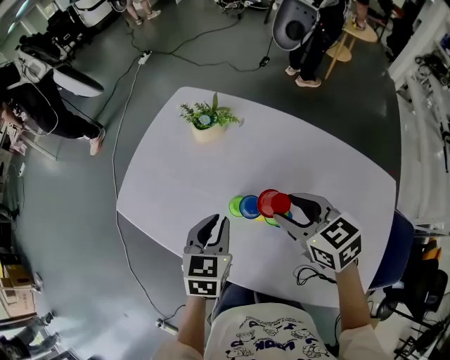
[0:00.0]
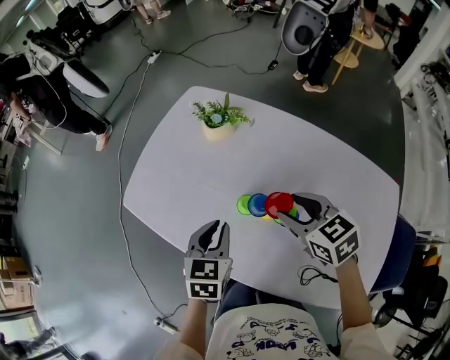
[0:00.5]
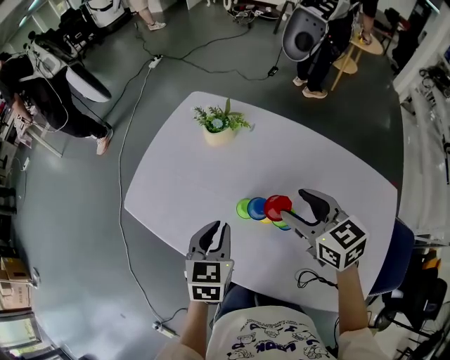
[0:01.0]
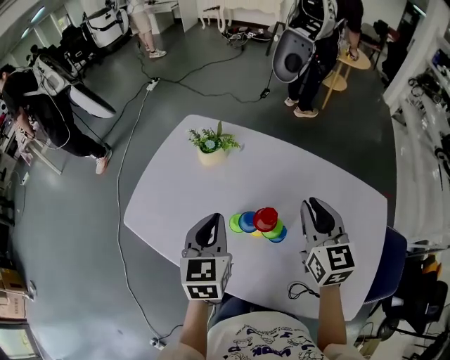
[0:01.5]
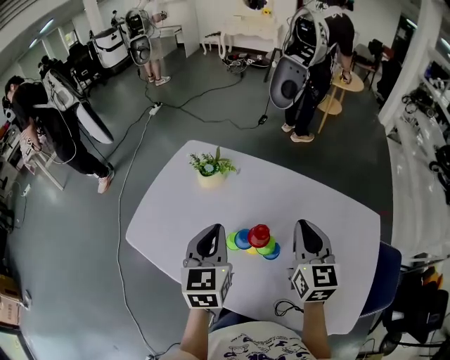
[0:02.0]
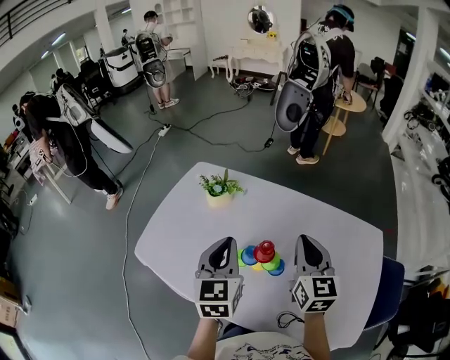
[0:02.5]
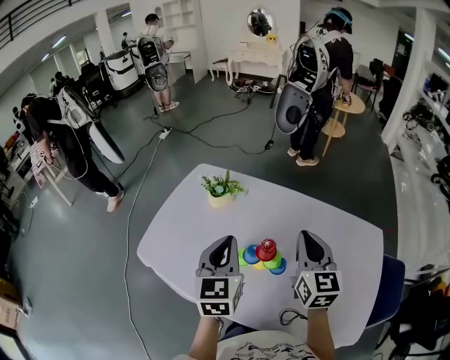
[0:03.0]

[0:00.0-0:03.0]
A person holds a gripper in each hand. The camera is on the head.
0:00.0 to 0:01.5: The right gripper moves upward and to the right, roughly 10 cm, turns by about 40 degrees, and closes. The left gripper moves upward, approximately 10 cm.
0:01.5 to 0:03.0: The right gripper shifts approximately 5 cm backward and upward. Meanwhile the left gripper is displaced upward by about 10 cm.

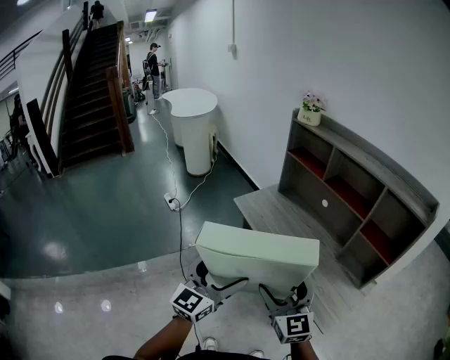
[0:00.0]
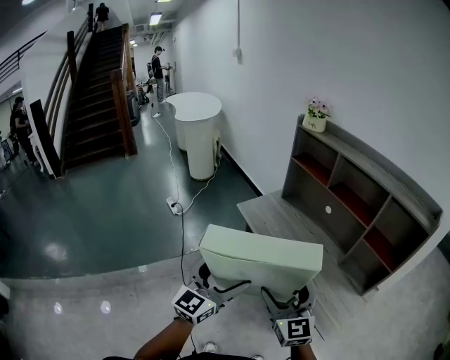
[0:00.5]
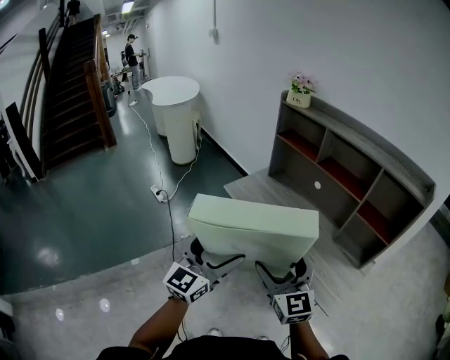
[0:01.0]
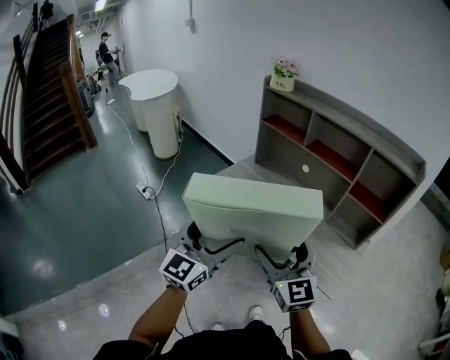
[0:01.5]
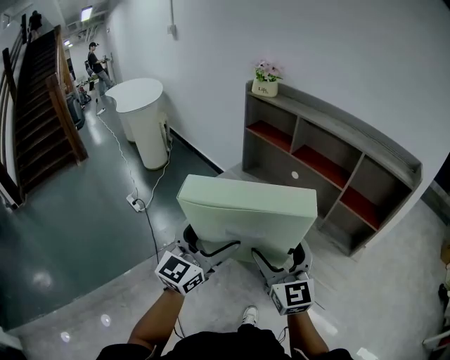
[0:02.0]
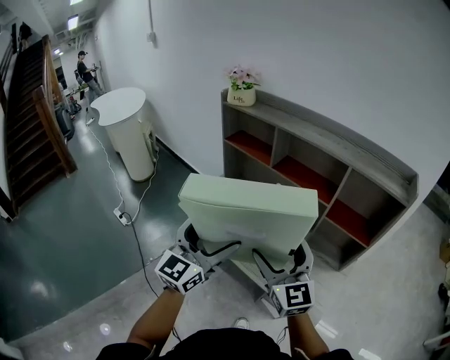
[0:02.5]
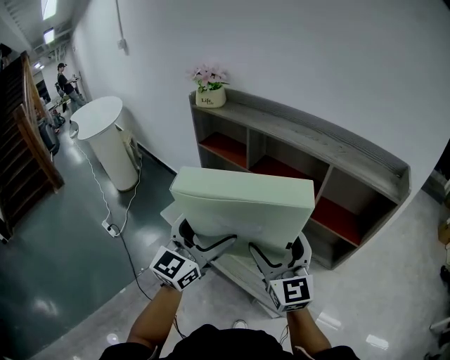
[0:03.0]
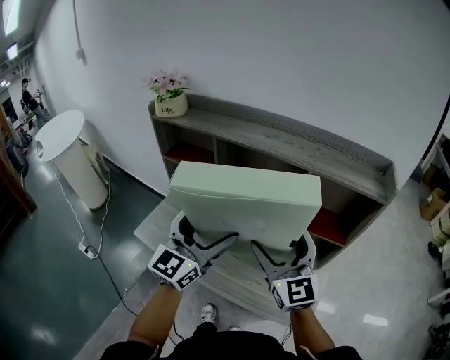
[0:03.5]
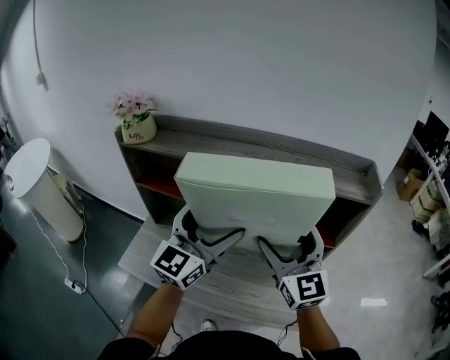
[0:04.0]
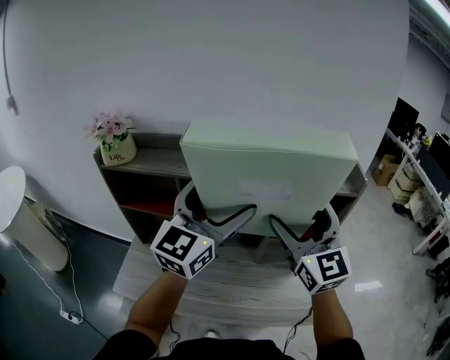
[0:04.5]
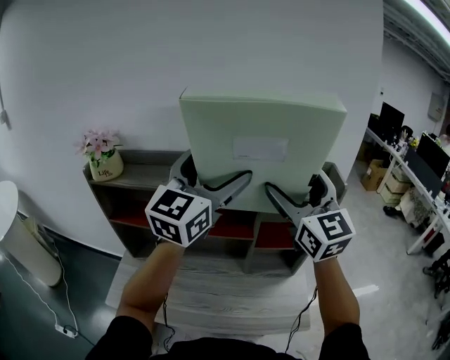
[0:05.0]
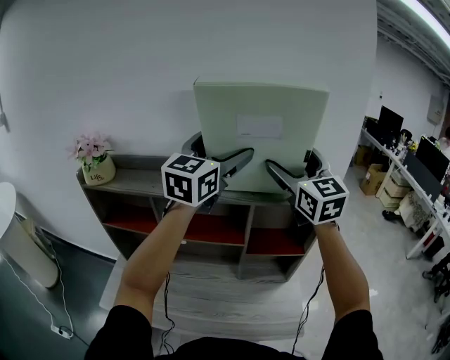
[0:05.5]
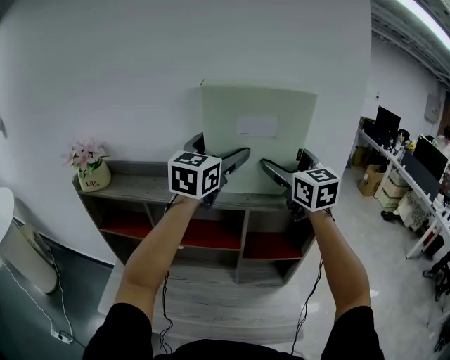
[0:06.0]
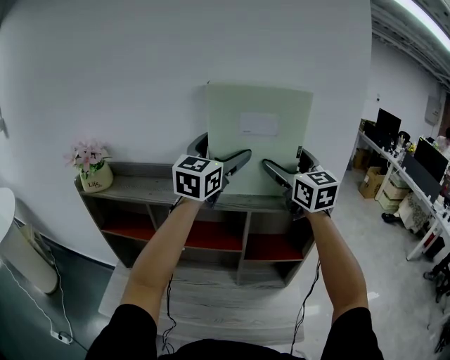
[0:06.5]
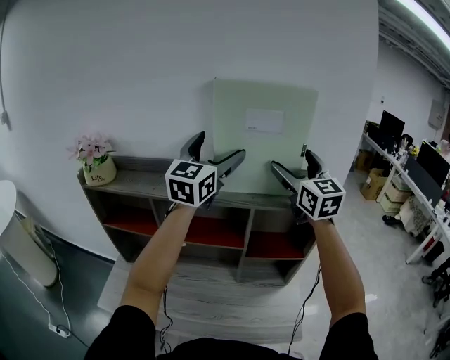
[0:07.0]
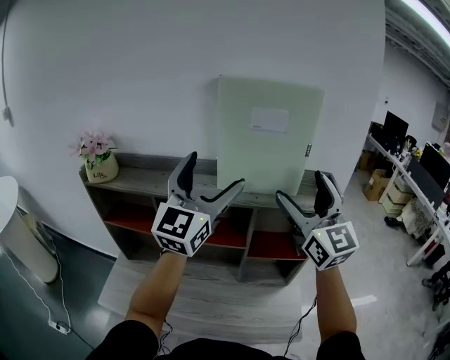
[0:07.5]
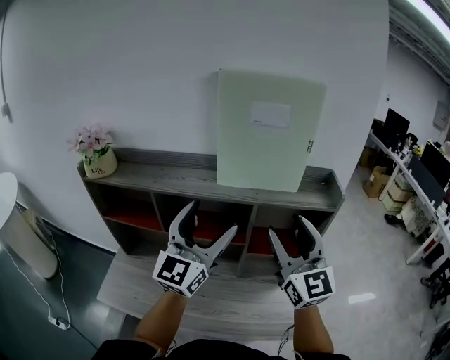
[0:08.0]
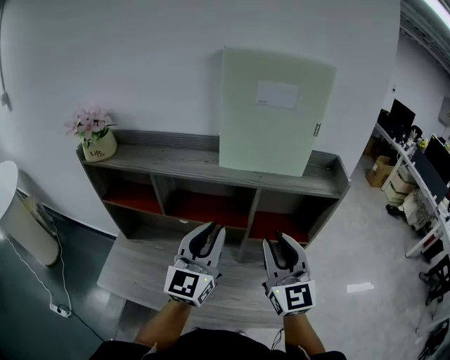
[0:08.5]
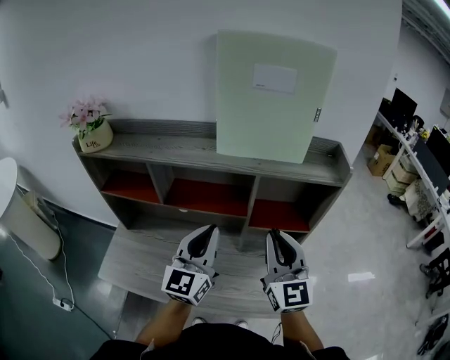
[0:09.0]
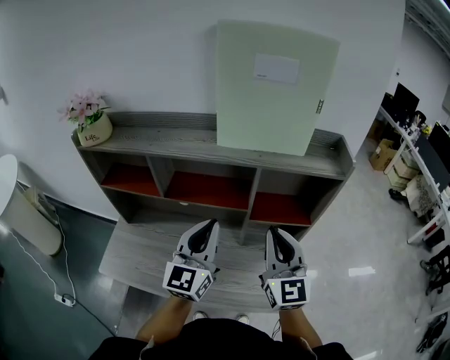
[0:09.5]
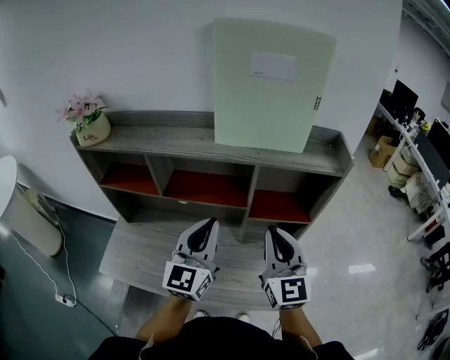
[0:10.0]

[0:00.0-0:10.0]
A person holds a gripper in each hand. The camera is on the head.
0:00.0 to 0:02.0: Both grippers move forward, approximately 10 cm.
0:02.0 to 0:04.0: The left gripper ends up about 40 cm from where it was, and swivels about 30 degrees, while the right gripper moves about 35 cm, and rotates about 30 degrees.
0:04.0 to 0:06.0: The two grippers go some 25 cm forward, upward and to the right.
0:06.0 to 0:08.0: The two grippers go approximately 20 cm backward and downward. The right gripper closes.
0:08.0 to 0:10.0: Both grippers move downward, roughly 10 cm. The left gripper closes up. Meanwhile the right gripper closes up.

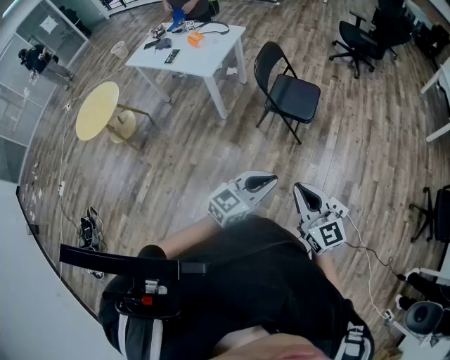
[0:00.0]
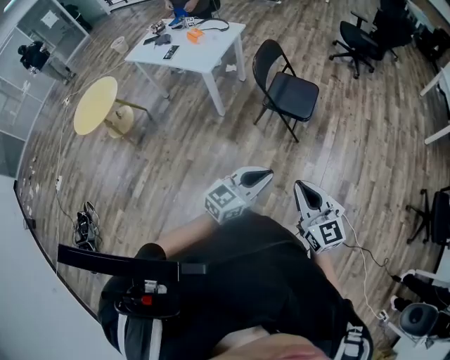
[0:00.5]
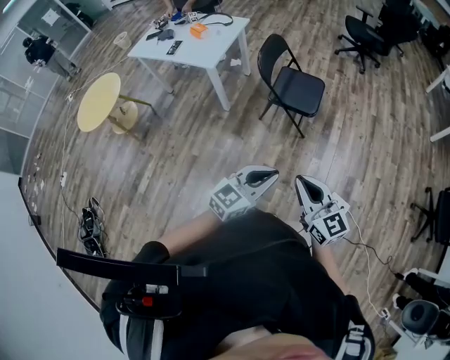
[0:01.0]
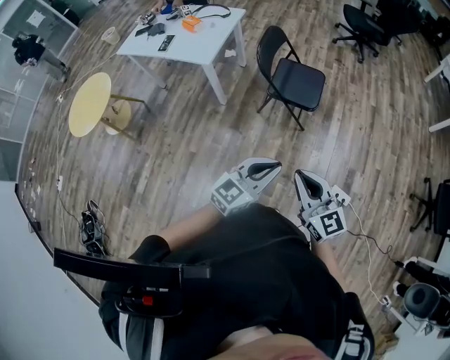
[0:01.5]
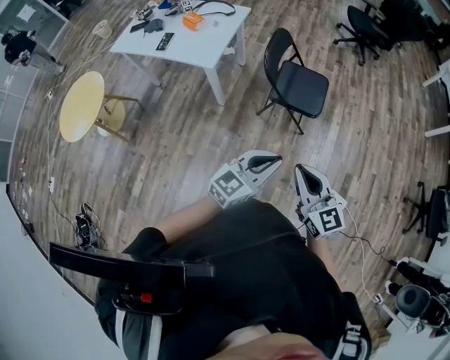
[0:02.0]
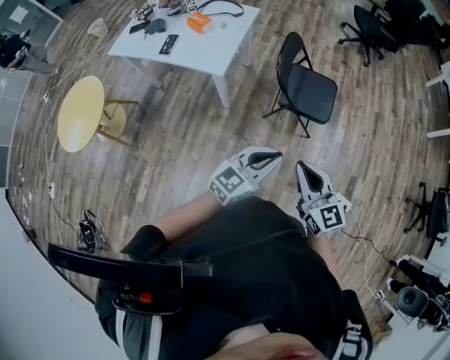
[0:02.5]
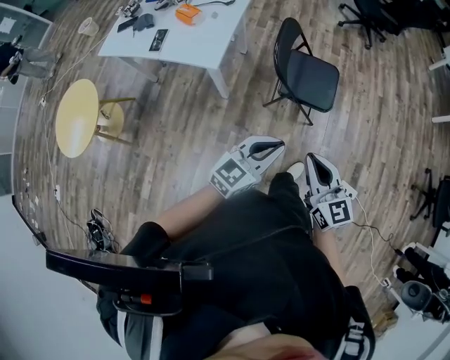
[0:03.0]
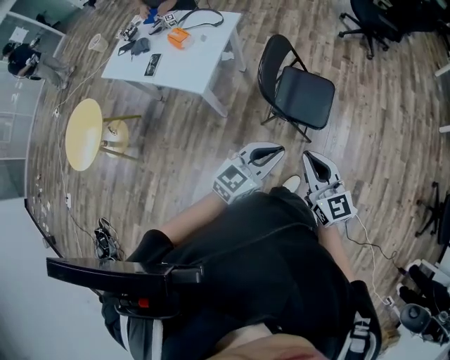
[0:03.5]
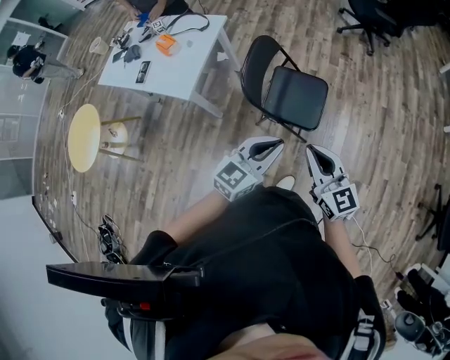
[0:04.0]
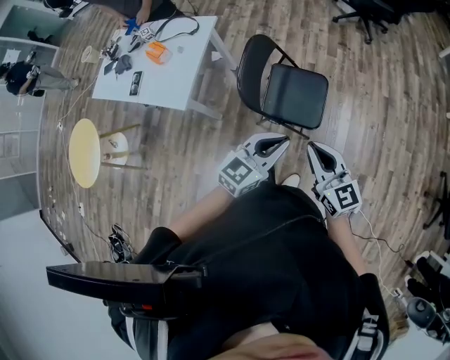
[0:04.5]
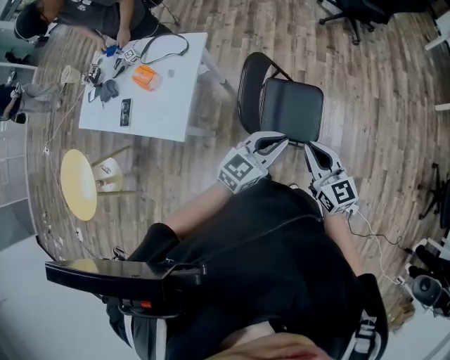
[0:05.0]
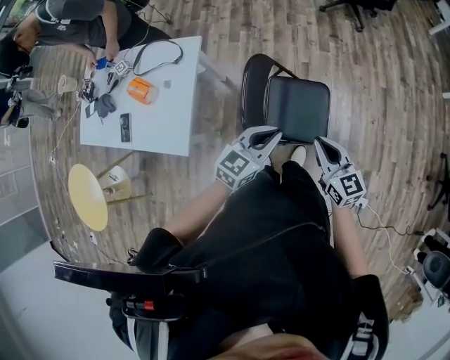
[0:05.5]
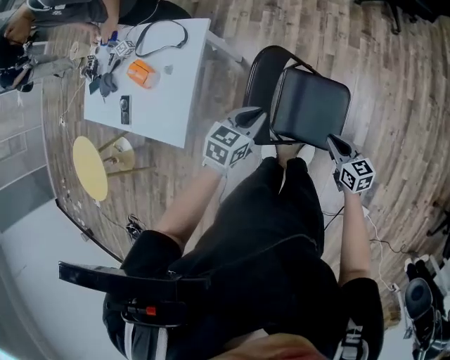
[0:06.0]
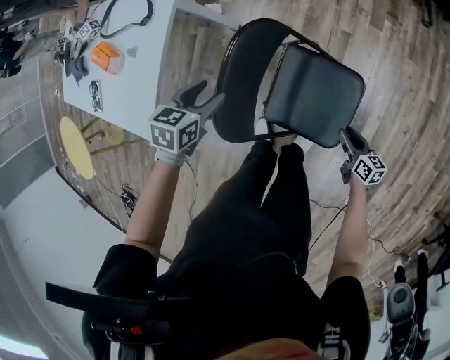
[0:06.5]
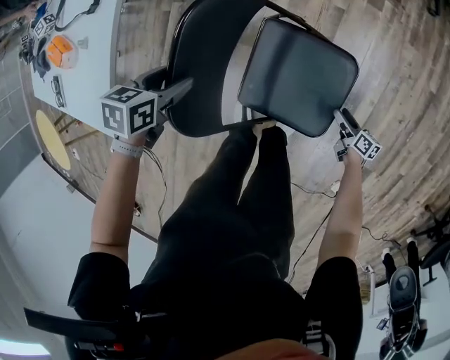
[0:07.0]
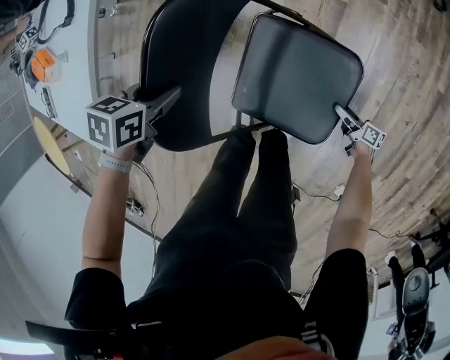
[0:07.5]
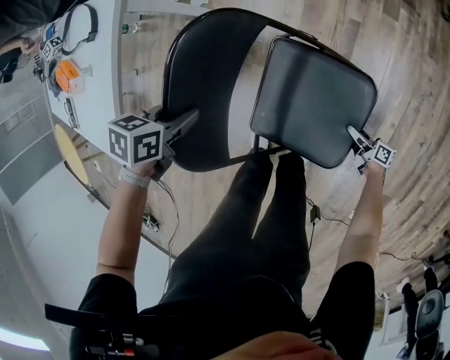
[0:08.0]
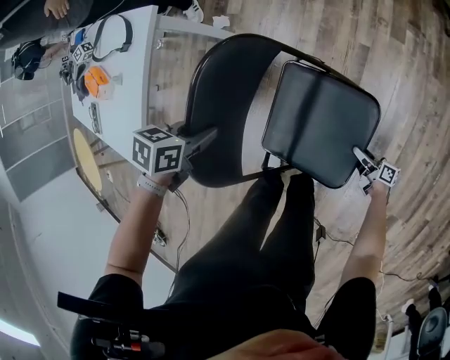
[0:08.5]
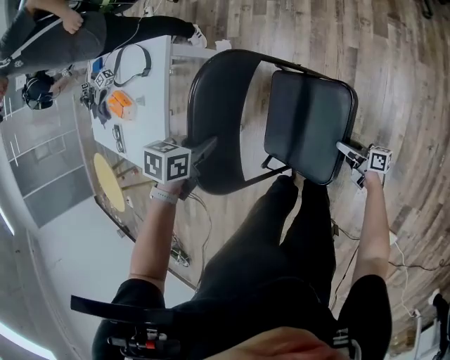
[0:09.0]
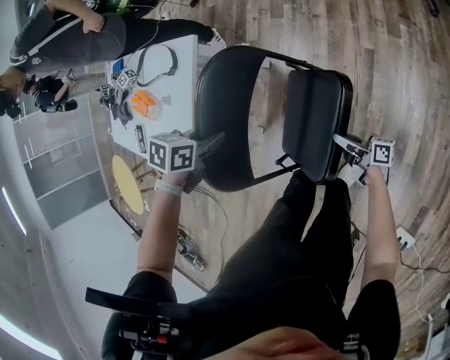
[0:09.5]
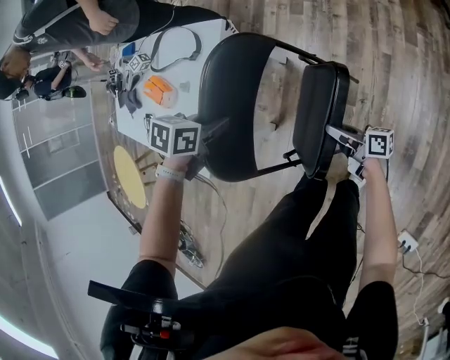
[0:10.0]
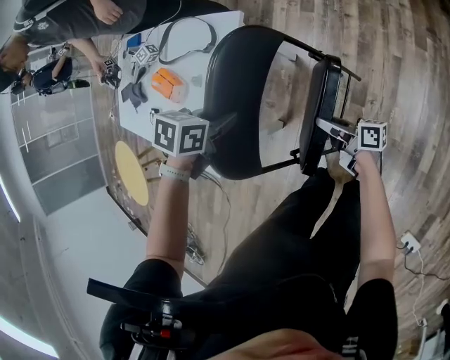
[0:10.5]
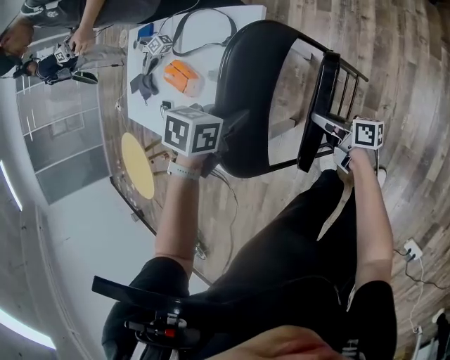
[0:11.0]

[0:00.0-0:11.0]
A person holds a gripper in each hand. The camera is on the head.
0:00.0 to 0:02.0: Both grippers move forward and to the left, roughly 20 cm.
0:02.0 to 0:03.5: The grippers both shift forward by roughly 20 cm.
0:03.5 to 0:05.5: The two grippers go roughly 35 cm forward.
0:05.5 to 0:07.5: The right gripper moves downward, some 60 cm, rotates around the line of its fingers by some 60 degrees, clockwise from behind, and opens its fingers. The left gripper travels downward and forward by approximately 35 cm, tips its fingers downward by approximately 50 degrees, and opens.
0:07.5 to 0:09.0: The left gripper is displaced upward by some 10 cm, while the right gripper shifts approximately 20 cm upward and to the left, and swivels about 20 degrees.
0:09.0 to 0:11.0: The right gripper shifts by about 40 cm, and closes up. The left gripper moves about 20 cm.

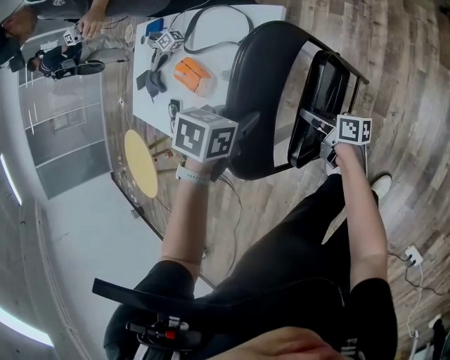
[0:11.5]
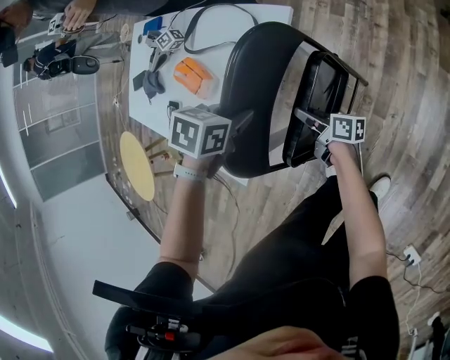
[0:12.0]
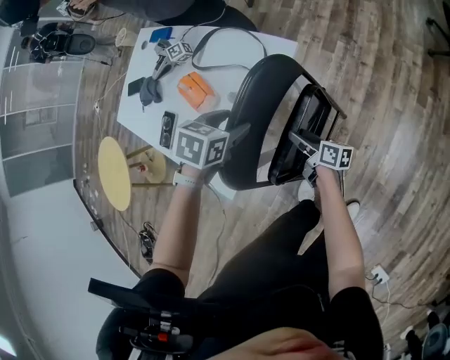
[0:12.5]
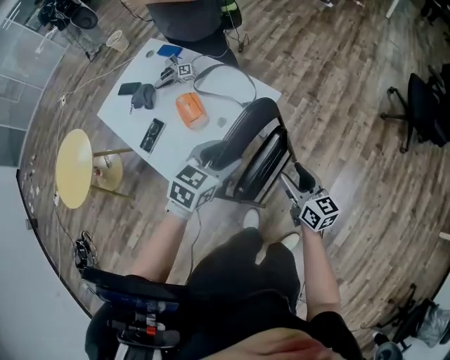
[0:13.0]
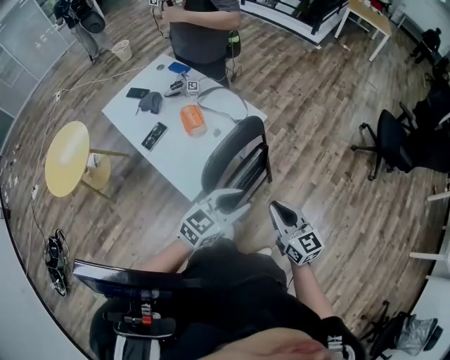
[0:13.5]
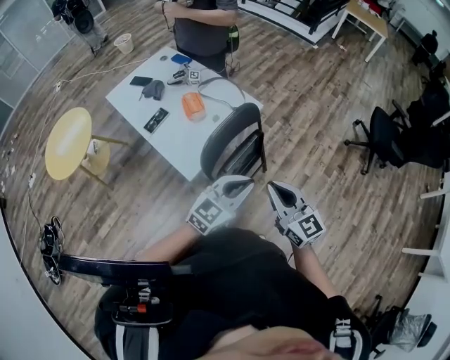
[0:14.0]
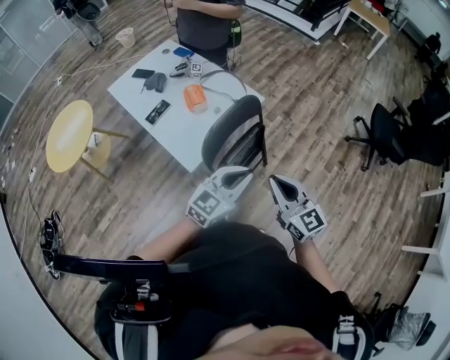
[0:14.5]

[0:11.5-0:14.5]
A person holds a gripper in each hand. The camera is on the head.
0:11.5 to 0:13.0: The right gripper goes about 25 cm upward, rolls counterclockwise, seen from behind, by roughly 50 degrees, and opens; the left gripper moves upward, about 15 cm, angles its fingers upward, by about 40 degrees, and opens up.
0:13.0 to 0:14.5: The left gripper goes roughly 30 cm backward, upward and to the right, changes its angle by roughly 30 degrees, and closes up. The right gripper travels upward and backward by some 30 cm, rotates approximately 30 degrees, and closes its fingers.
